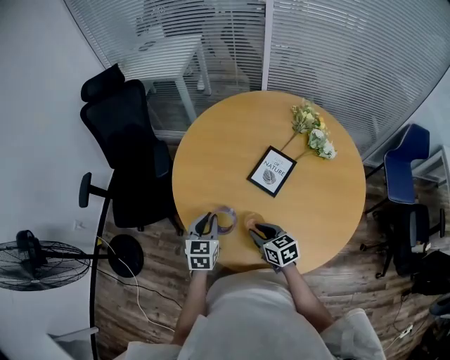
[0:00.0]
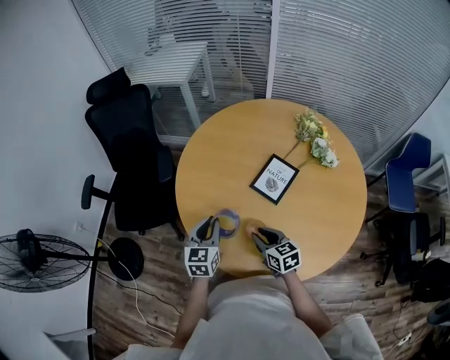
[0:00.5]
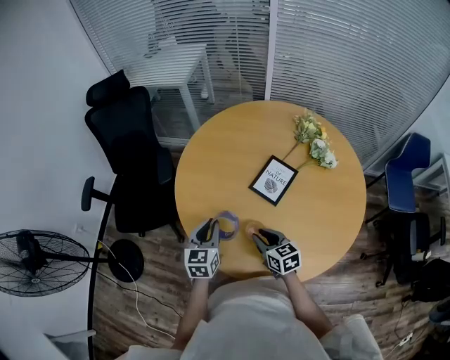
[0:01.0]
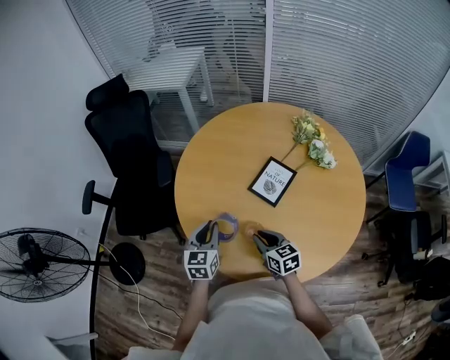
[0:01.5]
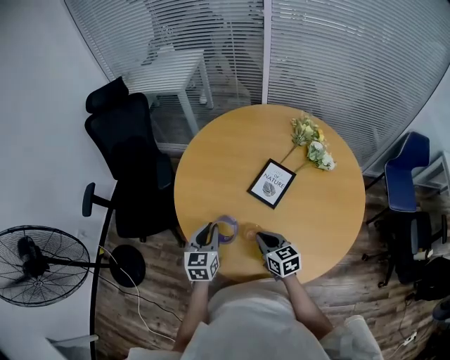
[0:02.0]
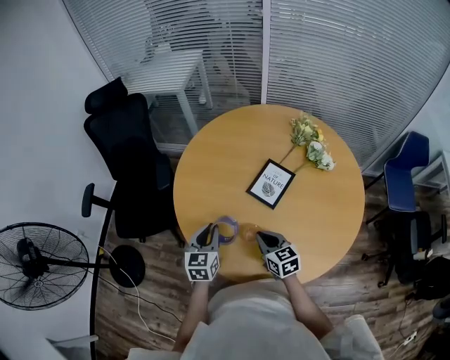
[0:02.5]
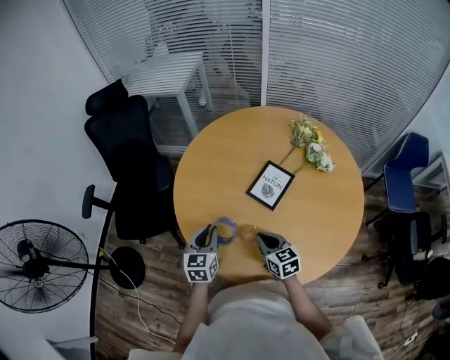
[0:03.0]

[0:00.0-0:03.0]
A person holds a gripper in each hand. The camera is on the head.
0:00.0 to 0:03.0: The grippers make only small movements.

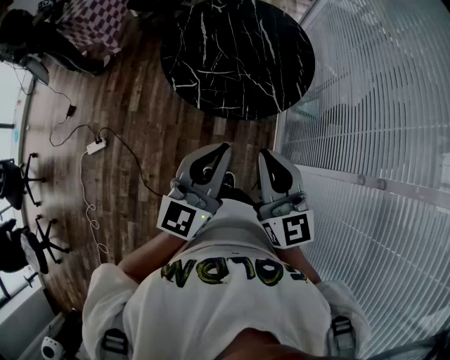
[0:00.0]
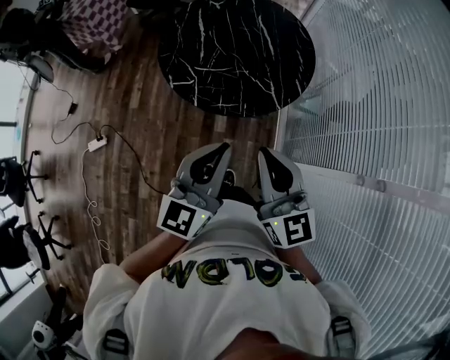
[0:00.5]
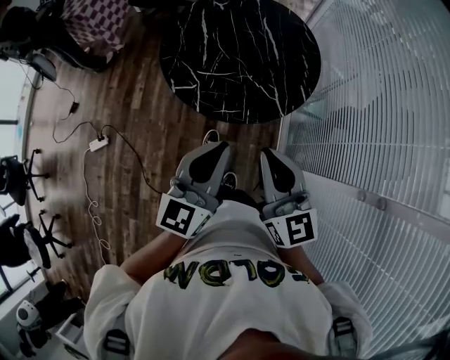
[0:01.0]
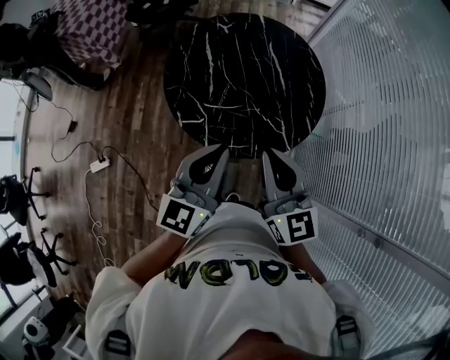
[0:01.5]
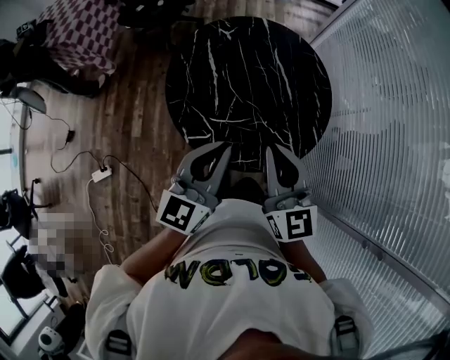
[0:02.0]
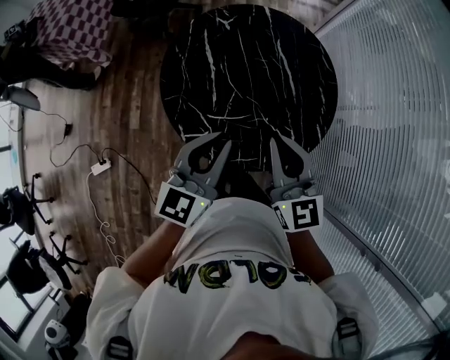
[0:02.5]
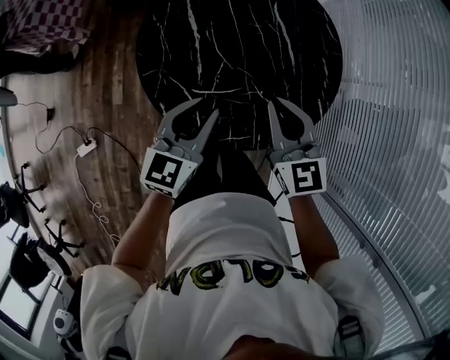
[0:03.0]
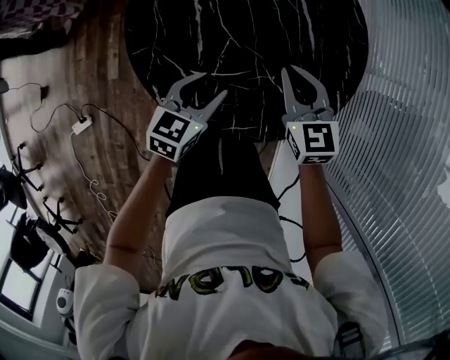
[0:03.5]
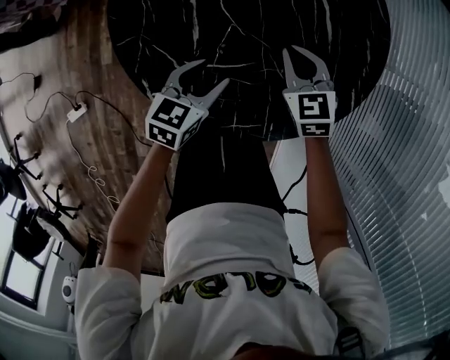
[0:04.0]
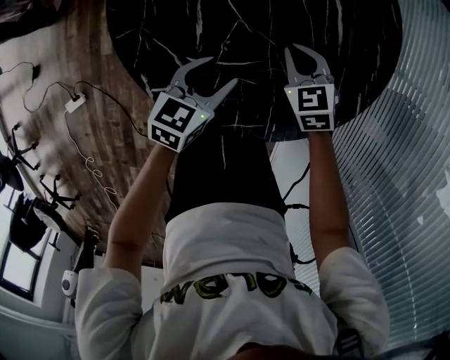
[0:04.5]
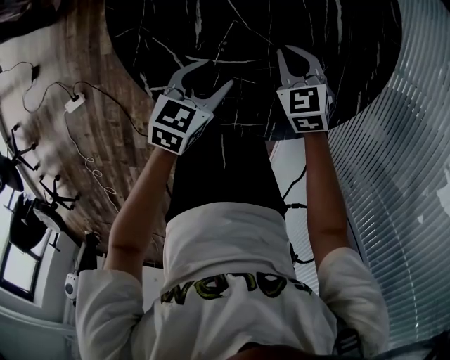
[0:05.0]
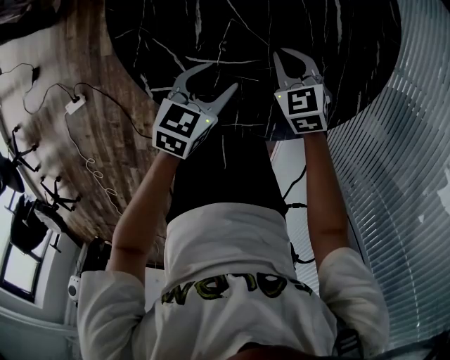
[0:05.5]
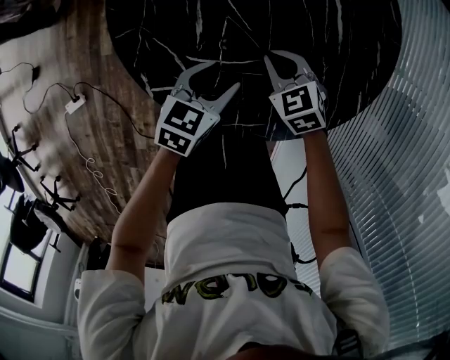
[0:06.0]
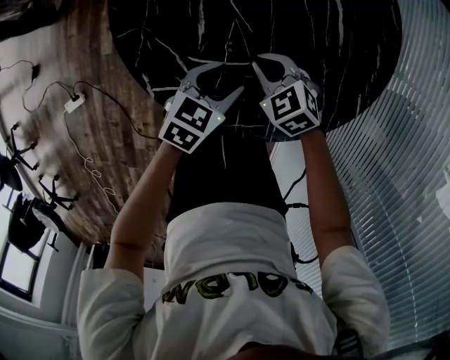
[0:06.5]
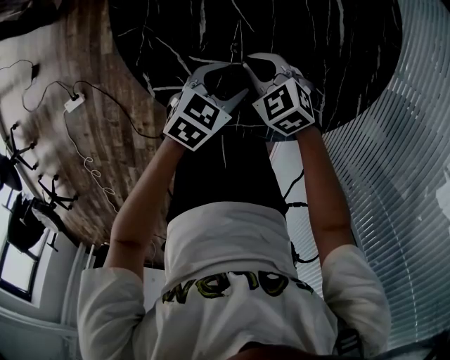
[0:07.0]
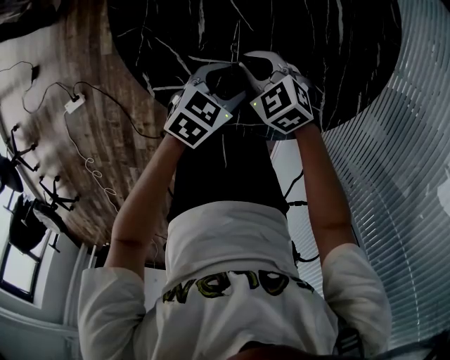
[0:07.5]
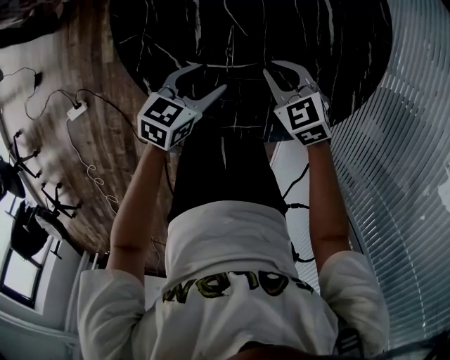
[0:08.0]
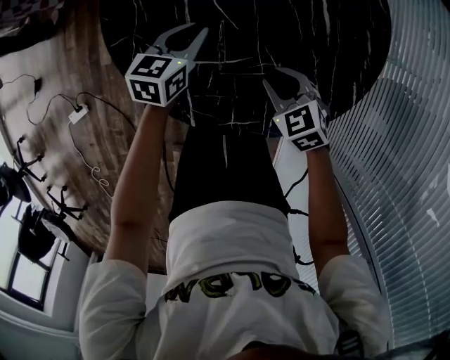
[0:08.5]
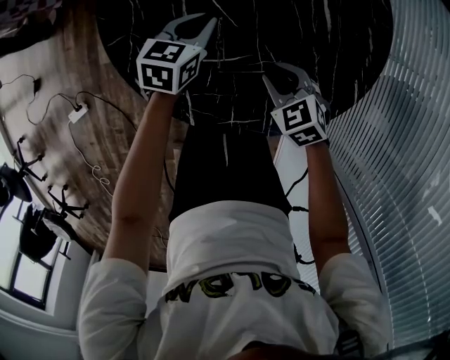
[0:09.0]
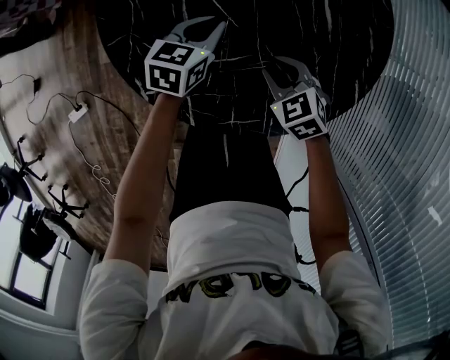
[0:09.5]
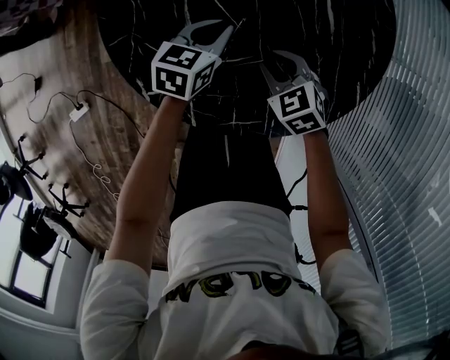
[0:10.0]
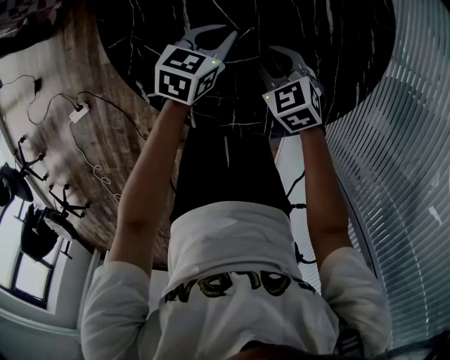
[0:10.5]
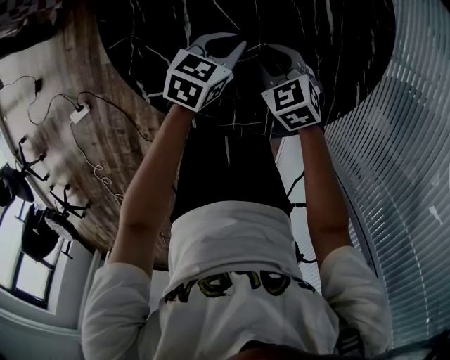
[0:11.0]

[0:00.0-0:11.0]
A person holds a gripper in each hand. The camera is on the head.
0:00.0 to 0:02.0: Both grippers move forward, approximately 25 cm.
0:02.0 to 0:03.5: The right gripper goes some 30 cm downward and forward, and changes its angle by approximately 30 degrees; the left gripper shifts about 30 cm downward, rotates roughly 30 degrees, and opens.
0:03.5 to 0:05.5: The right gripper moves downward, roughly 15 cm, and turns by some 30 degrees, while the left gripper travels downward by roughly 10 cm.
0:05.5 to 0:07.5: The right gripper ends up some 10 cm from where it was, and turns by approximately 20 degrees.
0:07.5 to 0:09.0: The right gripper changes place by roughly 10 cm. Meanwhile the left gripper changes place by approximately 15 cm, changes its angle by approximately 20 degrees, and closes.
0:09.0 to 0:11.0: The right gripper shifts by about 5 cm; the left gripper shifts about 5 cm to the right.

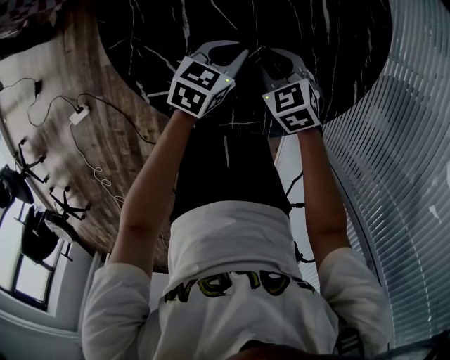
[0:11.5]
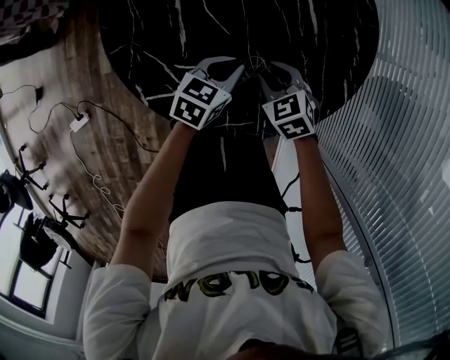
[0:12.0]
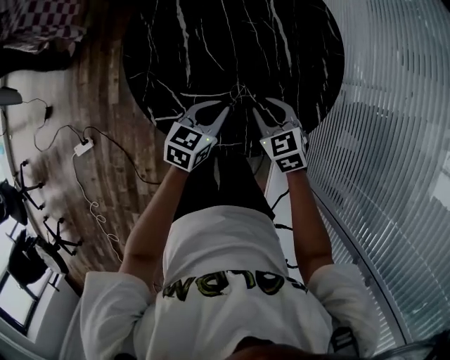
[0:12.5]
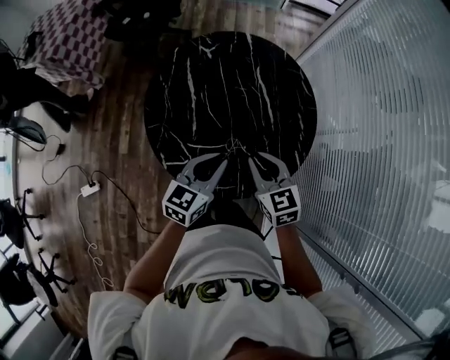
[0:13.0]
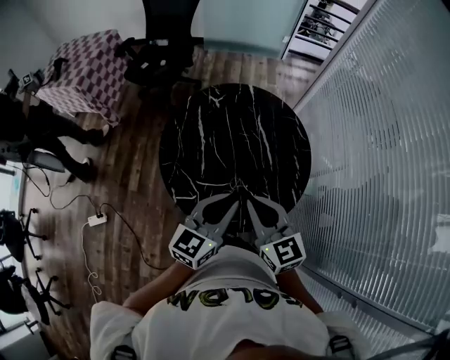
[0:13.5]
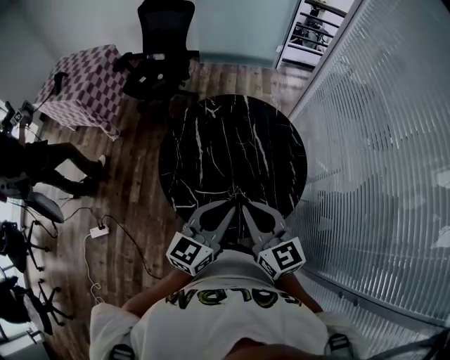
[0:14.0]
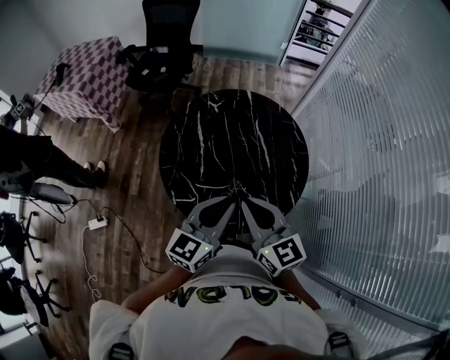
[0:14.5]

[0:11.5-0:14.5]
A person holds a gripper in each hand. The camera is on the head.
0:11.5 to 0:13.0: Both grippers move upward, approximately 25 cm. The right gripper changes its angle by approximately 30 degrees. Meanwhile the left gripper changes its angle by approximately 20 degrees.
0:13.0 to 0:14.5: Both grippers travel together upward, about 15 cm. The right gripper rotates approximately 20 degrees.

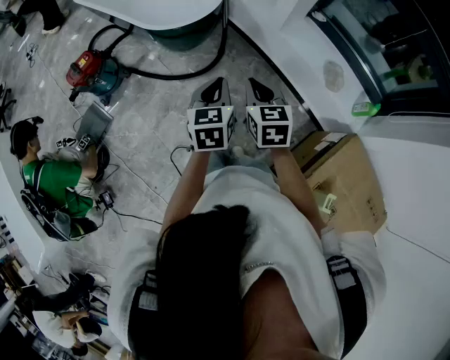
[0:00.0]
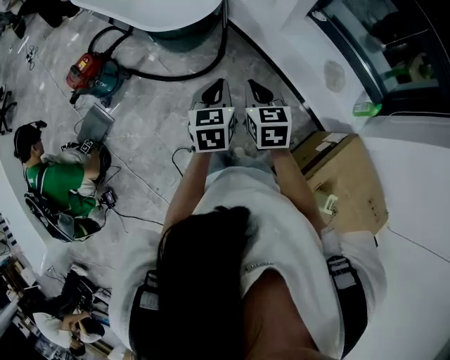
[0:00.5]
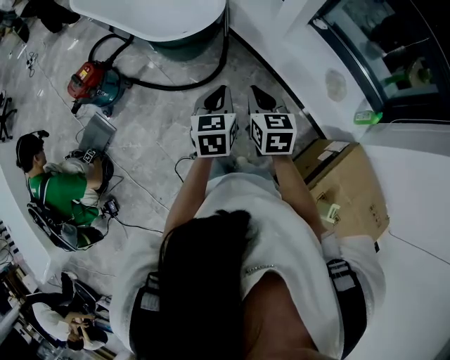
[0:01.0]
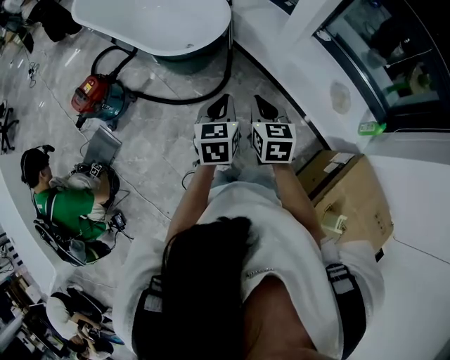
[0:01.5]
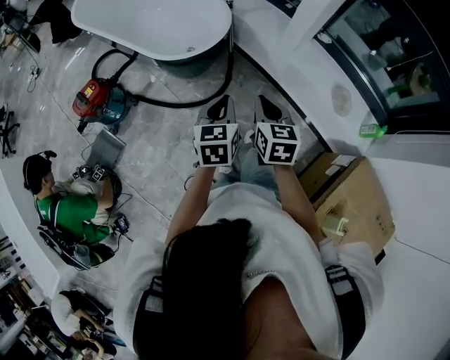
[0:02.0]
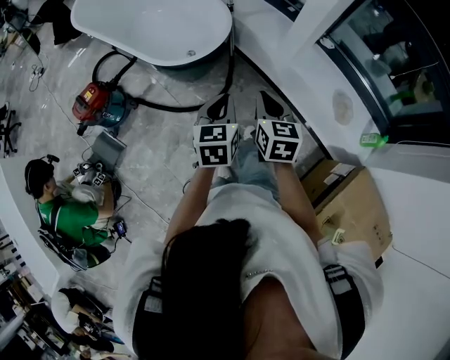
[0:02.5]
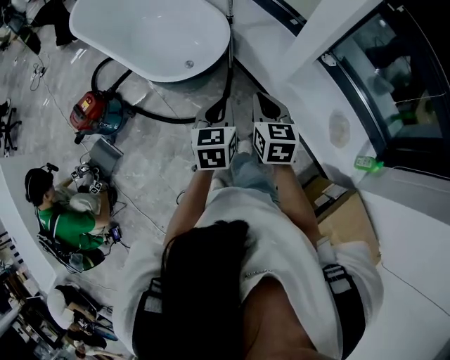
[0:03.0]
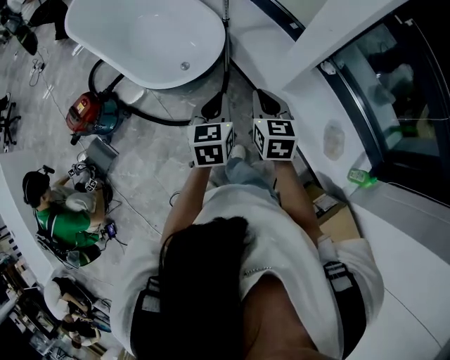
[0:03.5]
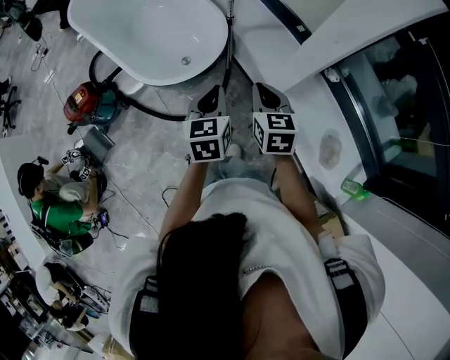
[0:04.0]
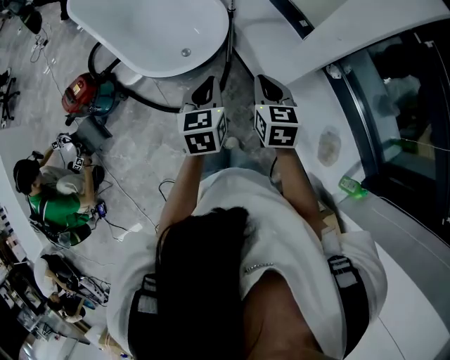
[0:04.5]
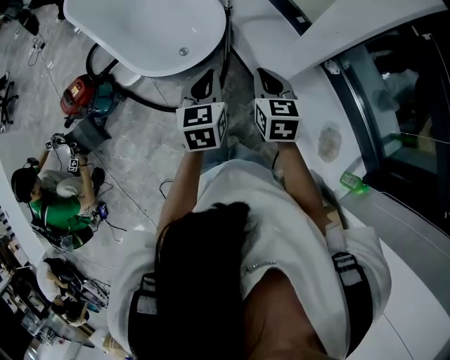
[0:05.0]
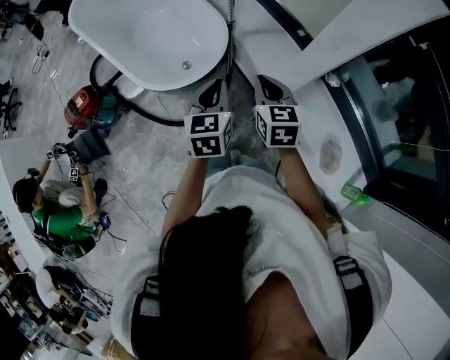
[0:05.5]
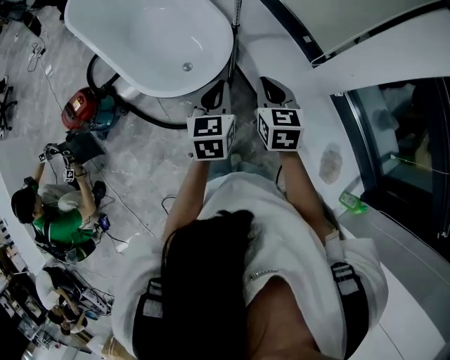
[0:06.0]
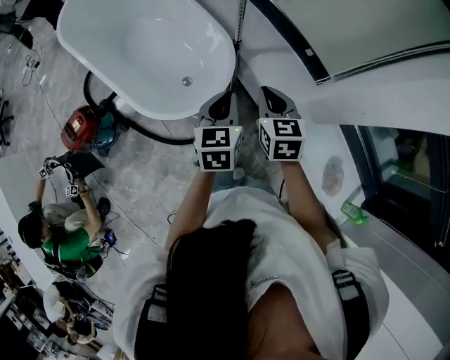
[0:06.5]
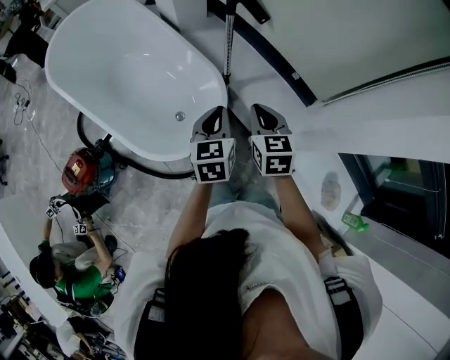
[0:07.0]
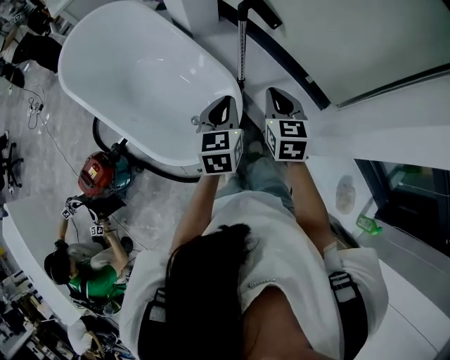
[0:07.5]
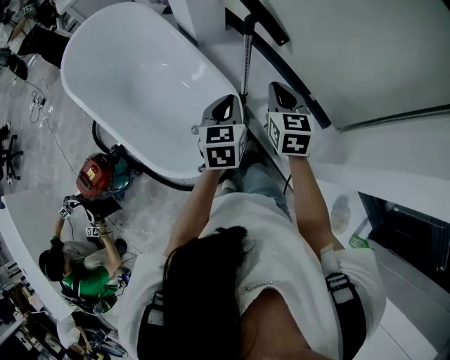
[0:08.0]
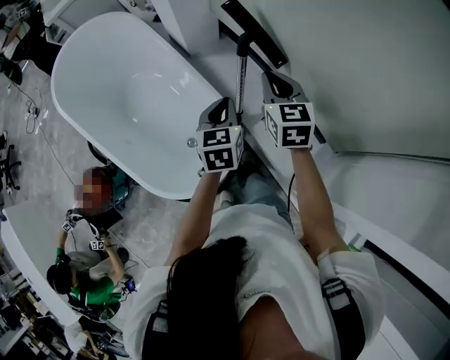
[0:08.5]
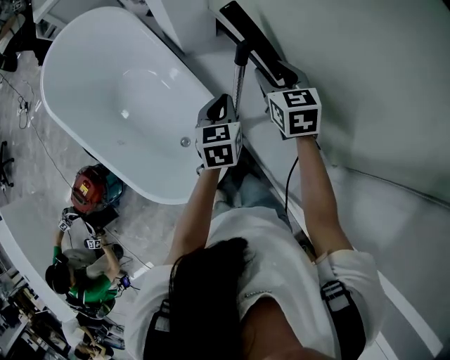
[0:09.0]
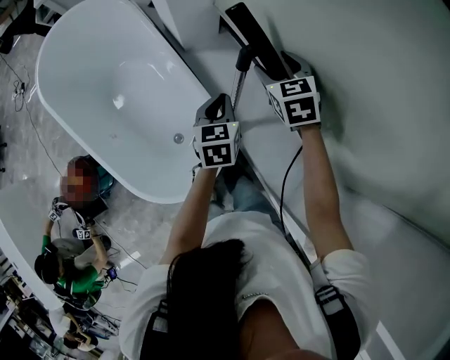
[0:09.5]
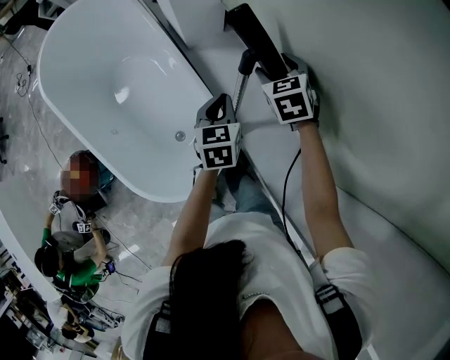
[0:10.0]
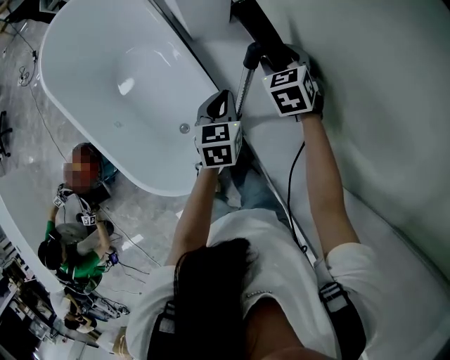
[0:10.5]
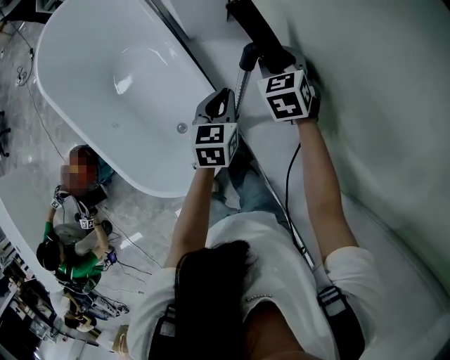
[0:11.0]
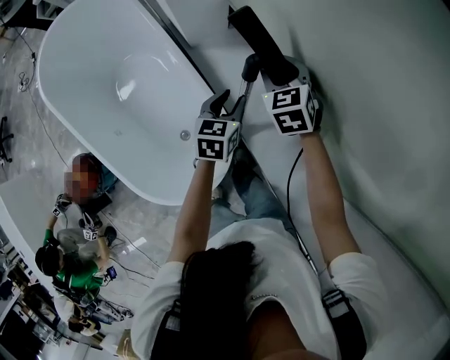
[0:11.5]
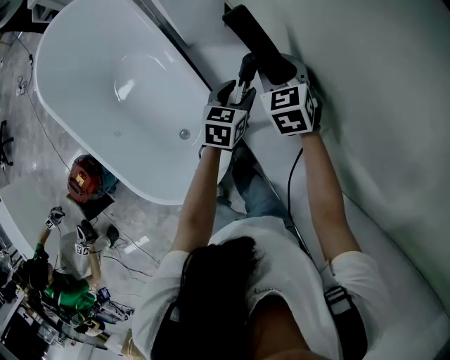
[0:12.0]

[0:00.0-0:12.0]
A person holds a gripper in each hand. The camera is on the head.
0:00.0 to 0:02.0: The right gripper goes approximately 10 cm forward, while the left gripper moves forward and to the left, about 10 cm.
0:02.0 to 0:04.0: The two grippers go some 25 cm forward.
0:04.0 to 0:06.0: Both grippers move forward, some 10 cm.
0:06.0 to 0:08.0: Both grippers travel together forward, roughly 25 cm.
0:08.0 to 0:10.0: The right gripper goes roughly 25 cm forward, rotates about 30 degrees, and opens; the left gripper shifts roughly 25 cm forward and downward.
0:10.0 to 0:12.0: The left gripper is displaced downward, forward and to the right by some 10 cm, and opens up.
